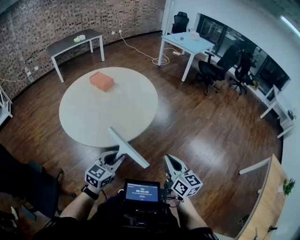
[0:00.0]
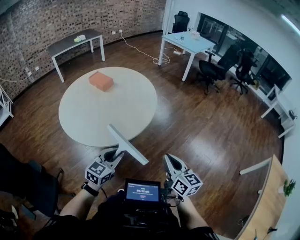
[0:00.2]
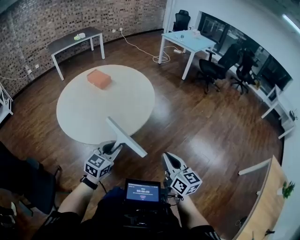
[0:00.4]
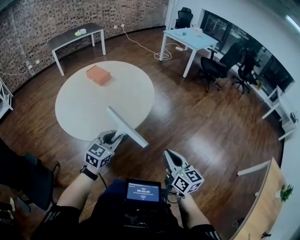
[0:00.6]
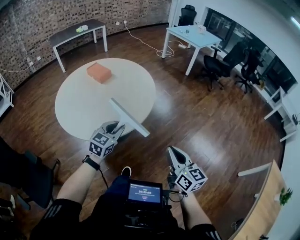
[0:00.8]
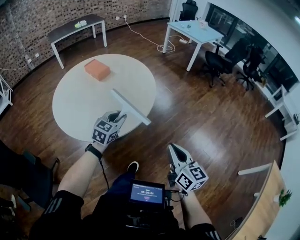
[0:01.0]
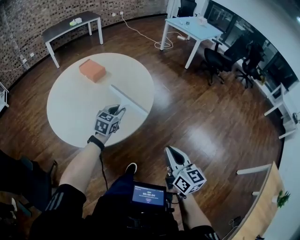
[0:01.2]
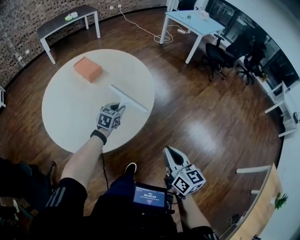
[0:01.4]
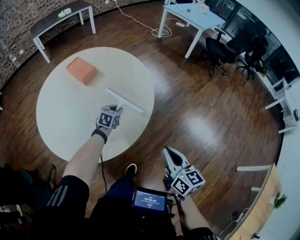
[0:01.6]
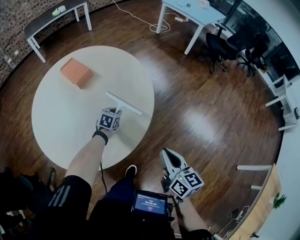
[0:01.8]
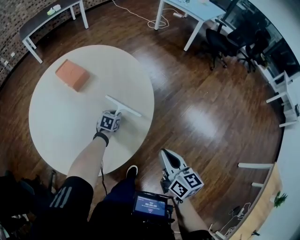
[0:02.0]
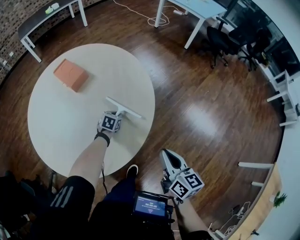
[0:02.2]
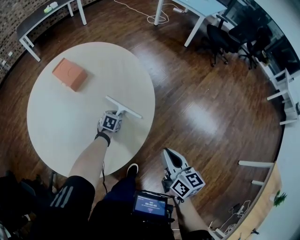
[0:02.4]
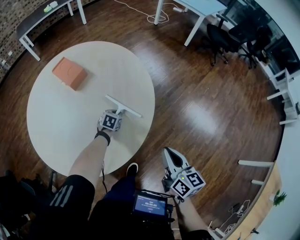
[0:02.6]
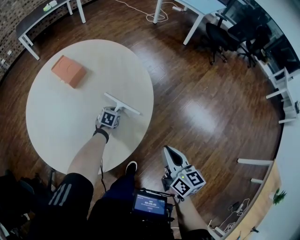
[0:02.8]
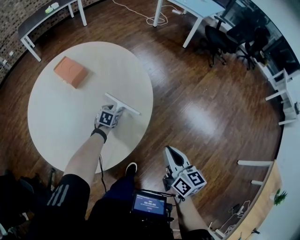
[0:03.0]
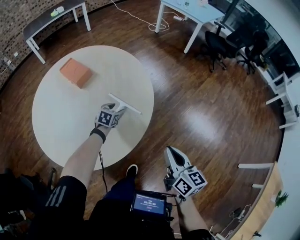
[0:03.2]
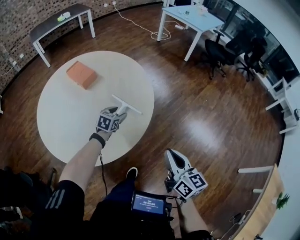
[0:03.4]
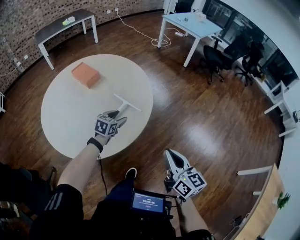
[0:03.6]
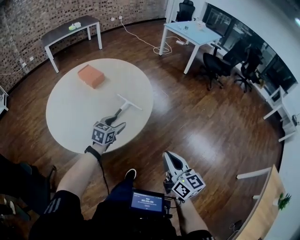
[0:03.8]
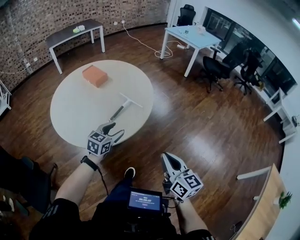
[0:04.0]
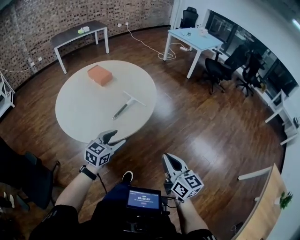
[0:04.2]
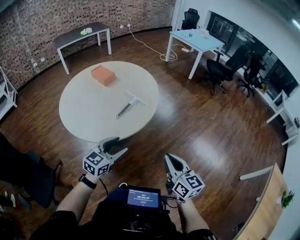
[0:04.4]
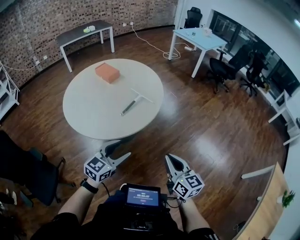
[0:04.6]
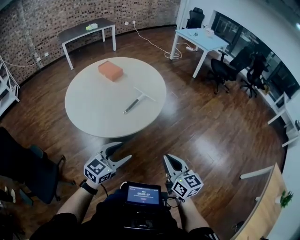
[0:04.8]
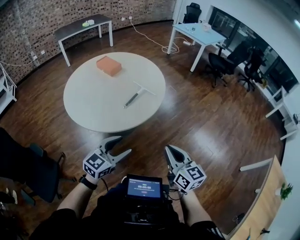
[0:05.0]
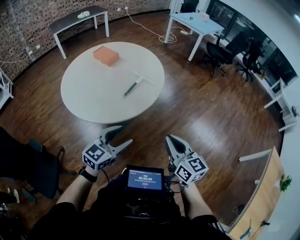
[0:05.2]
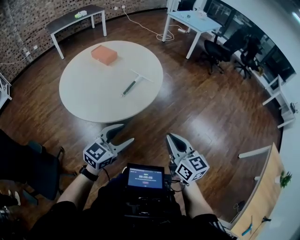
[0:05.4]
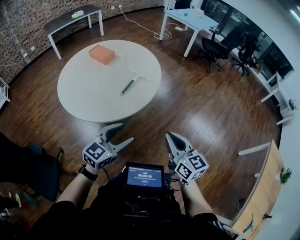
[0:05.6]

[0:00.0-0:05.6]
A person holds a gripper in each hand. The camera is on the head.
0:00.0 to 0:01.4: The left gripper goes roughly 40 cm forward; the right gripper heads forward, covering about 20 cm.
0:01.4 to 0:02.8: The left gripper travels downward and forward by roughly 25 cm, and changes its angle by roughly 20 degrees, while the right gripper moves forward and downward, some 20 cm.
0:02.8 to 0:04.2: The right gripper shifts about 30 cm backward. The left gripper is displaced backward and upward by about 50 cm, points its fingers roughly 30 degrees further upward, and opens its fingers.
0:04.2 to 0:05.6: The left gripper moves backward and upward, about 15 cm. Meanwhile the right gripper moves to the left and backward, about 10 cm.

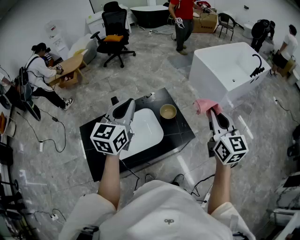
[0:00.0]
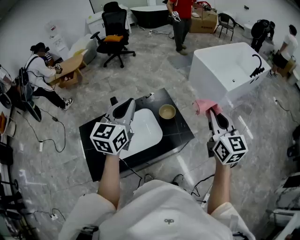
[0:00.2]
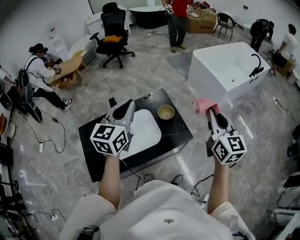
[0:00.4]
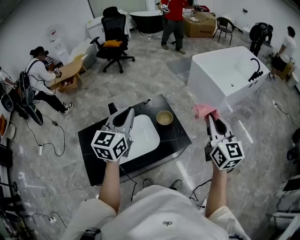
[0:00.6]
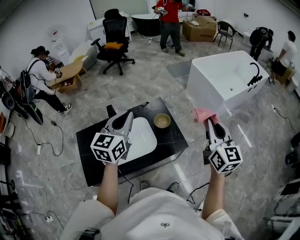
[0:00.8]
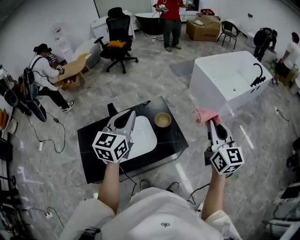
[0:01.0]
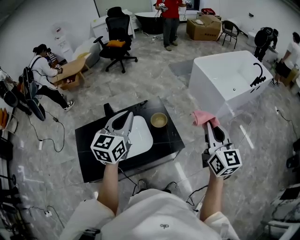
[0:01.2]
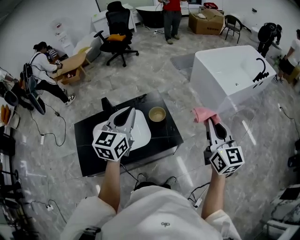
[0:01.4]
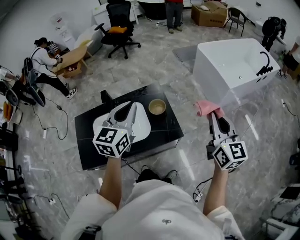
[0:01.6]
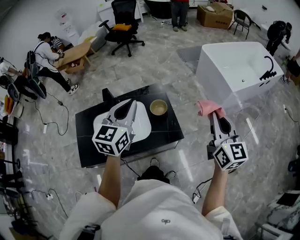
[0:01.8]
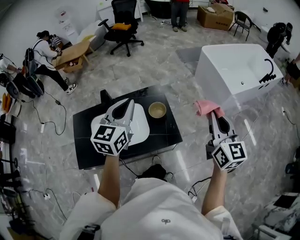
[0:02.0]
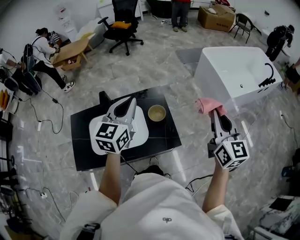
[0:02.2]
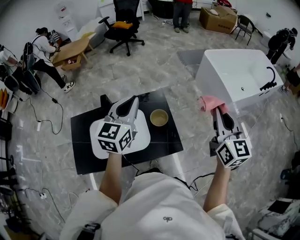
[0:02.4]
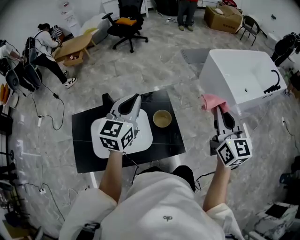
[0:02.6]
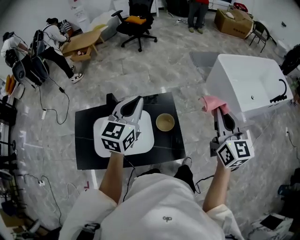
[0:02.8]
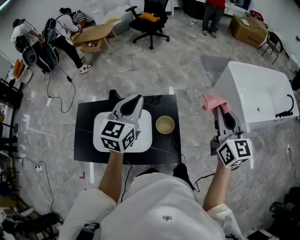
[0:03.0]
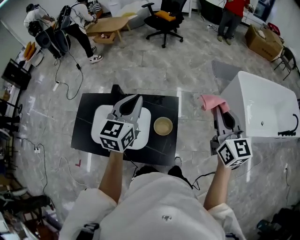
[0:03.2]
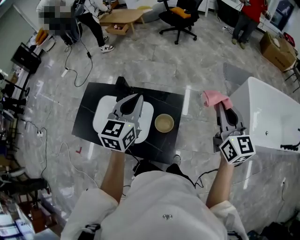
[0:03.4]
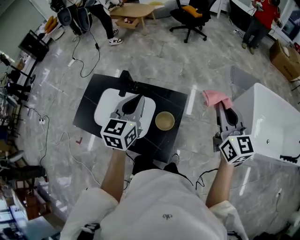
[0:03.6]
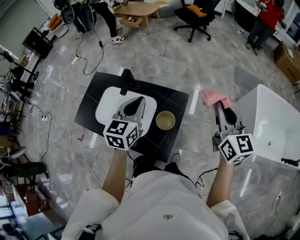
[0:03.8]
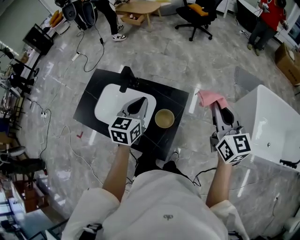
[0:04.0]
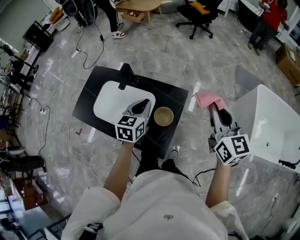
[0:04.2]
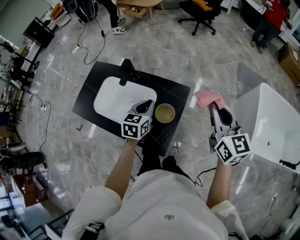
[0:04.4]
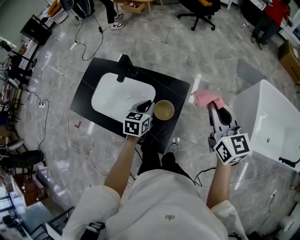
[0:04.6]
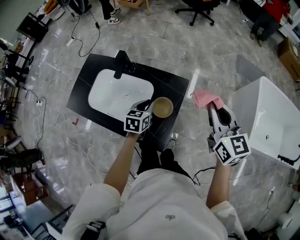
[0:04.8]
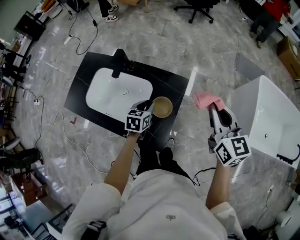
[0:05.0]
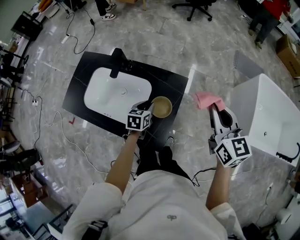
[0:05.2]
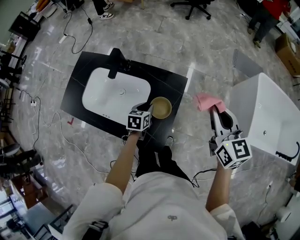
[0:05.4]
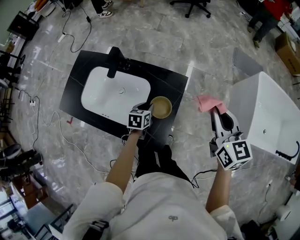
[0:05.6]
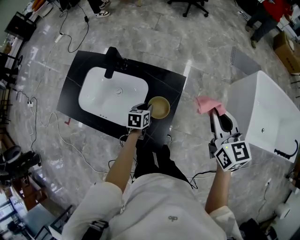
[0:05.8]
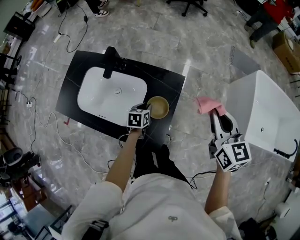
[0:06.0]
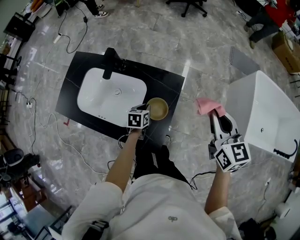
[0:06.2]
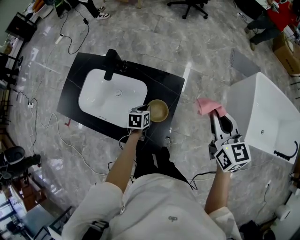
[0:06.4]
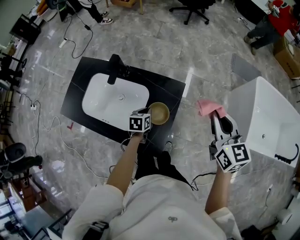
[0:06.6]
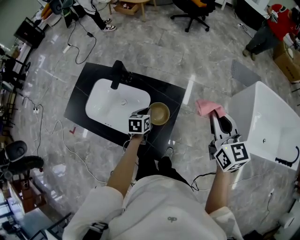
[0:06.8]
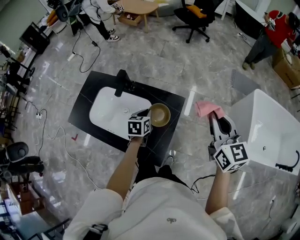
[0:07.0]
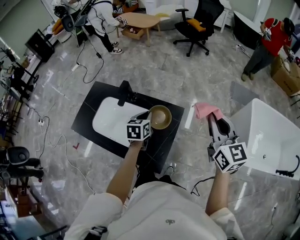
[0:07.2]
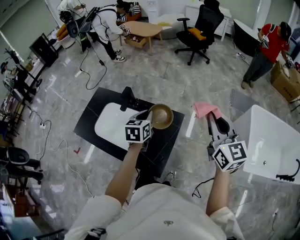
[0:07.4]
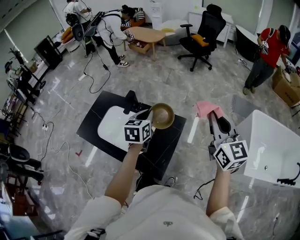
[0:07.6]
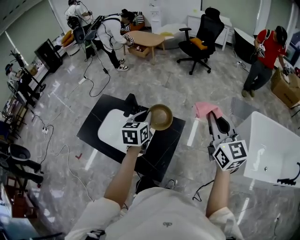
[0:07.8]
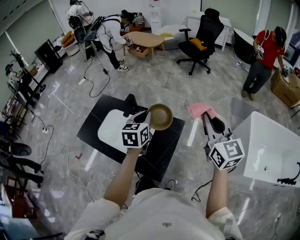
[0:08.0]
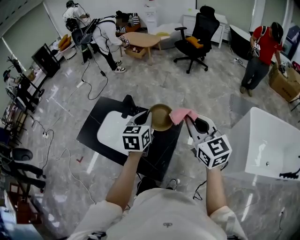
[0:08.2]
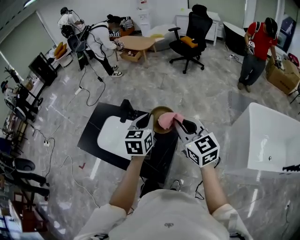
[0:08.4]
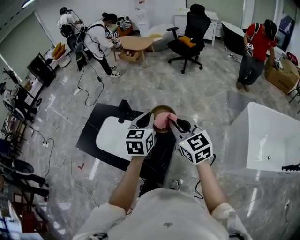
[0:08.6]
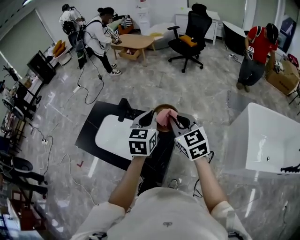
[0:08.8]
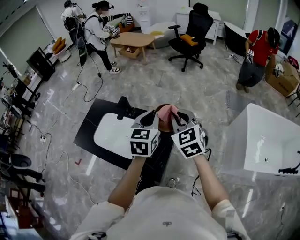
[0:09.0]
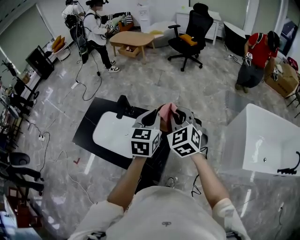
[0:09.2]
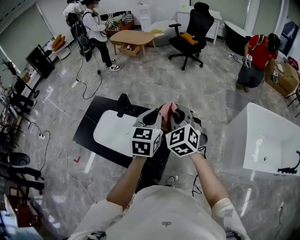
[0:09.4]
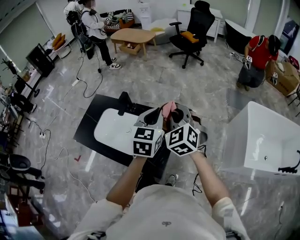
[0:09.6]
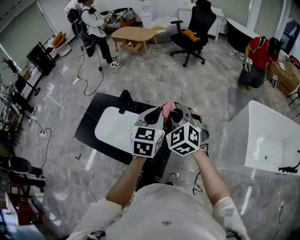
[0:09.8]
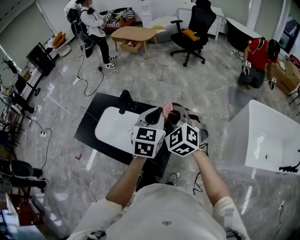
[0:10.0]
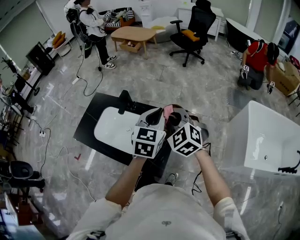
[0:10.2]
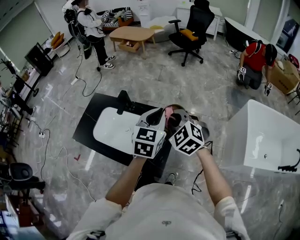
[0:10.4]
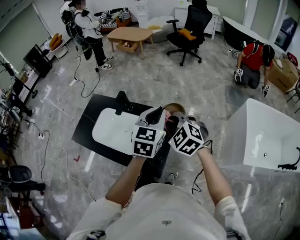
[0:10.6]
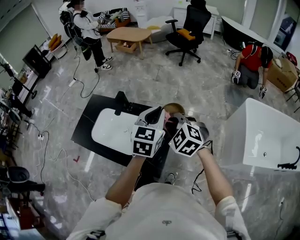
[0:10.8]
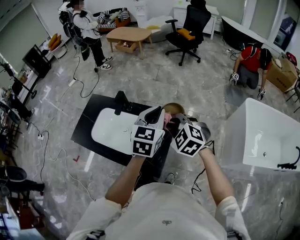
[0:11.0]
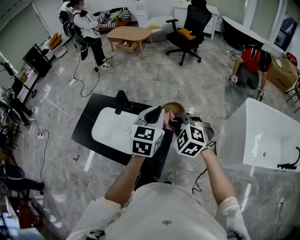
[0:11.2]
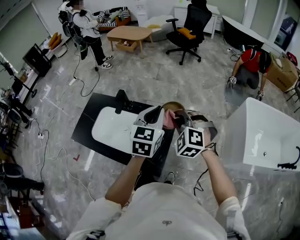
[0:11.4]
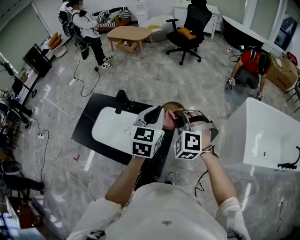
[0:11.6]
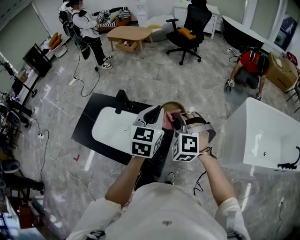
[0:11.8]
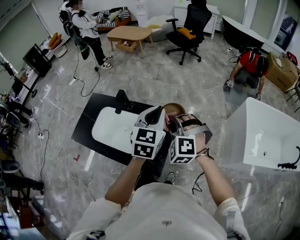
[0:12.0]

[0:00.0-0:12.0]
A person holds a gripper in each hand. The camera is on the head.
0:00.0 to 0:01.6: The two grippers go about 10 cm to the right.
0:01.6 to 0:03.0: The right gripper shifts approximately 20 cm forward. Meanwhile the left gripper travels forward by approximately 15 cm.
0:03.0 to 0:04.4: The left gripper is displaced downward by some 20 cm, and turns by some 30 degrees. The right gripper shifts by about 10 cm, and turns by some 30 degrees.
0:04.4 to 0:06.0: The right gripper moves downward, some 10 cm. The left gripper shifts roughly 20 cm downward, and rotates approximately 20 degrees.
0:06.0 to 0:07.6: The left gripper is displaced upward by some 30 cm, and rotates about 30 degrees, while the right gripper travels upward by some 15 cm, and turns by roughly 20 degrees.
0:07.6 to 0:09.0: The right gripper shifts some 10 cm to the left and downward, and changes its angle by some 30 degrees. The left gripper shifts approximately 10 cm to the right and upward.
0:09.0 to 0:10.4: The right gripper shifts by approximately 5 cm, and changes its angle by roughly 20 degrees.
0:10.4 to 0:12.0: The right gripper turns by approximately 30 degrees.

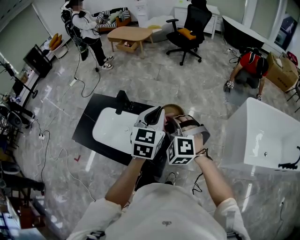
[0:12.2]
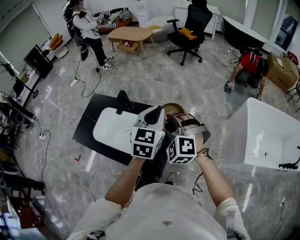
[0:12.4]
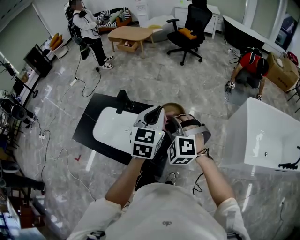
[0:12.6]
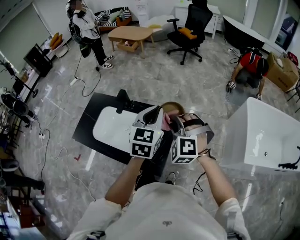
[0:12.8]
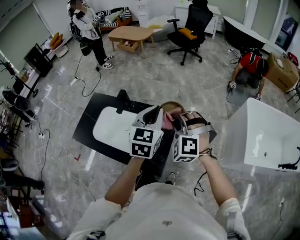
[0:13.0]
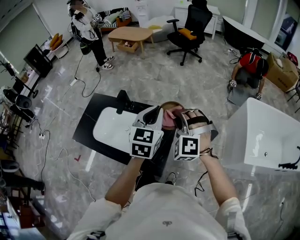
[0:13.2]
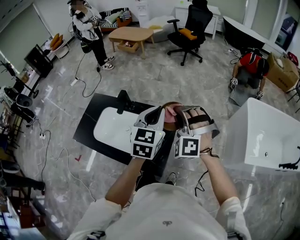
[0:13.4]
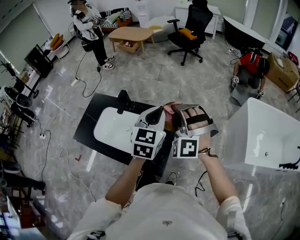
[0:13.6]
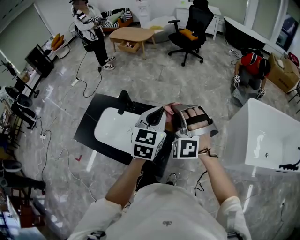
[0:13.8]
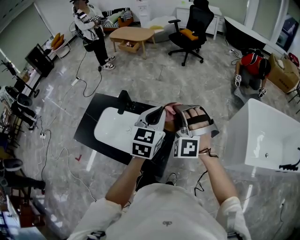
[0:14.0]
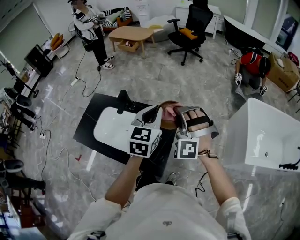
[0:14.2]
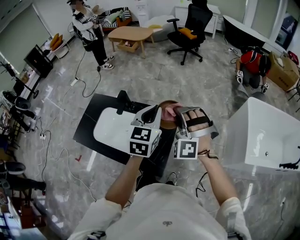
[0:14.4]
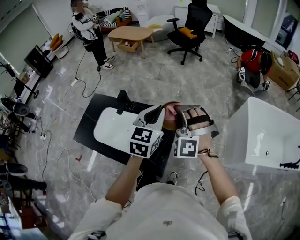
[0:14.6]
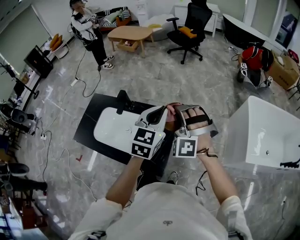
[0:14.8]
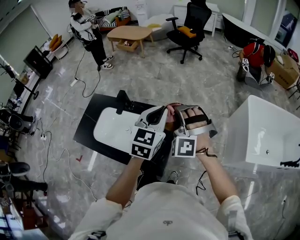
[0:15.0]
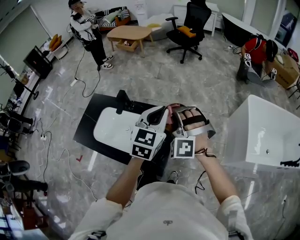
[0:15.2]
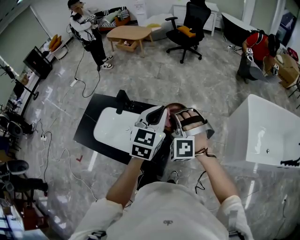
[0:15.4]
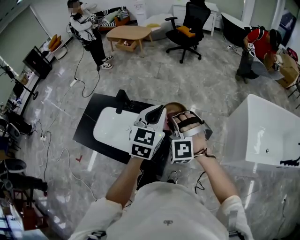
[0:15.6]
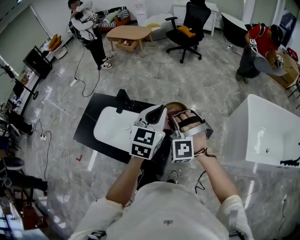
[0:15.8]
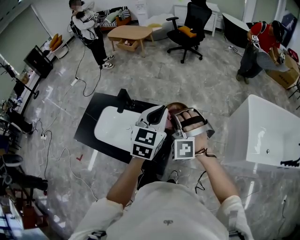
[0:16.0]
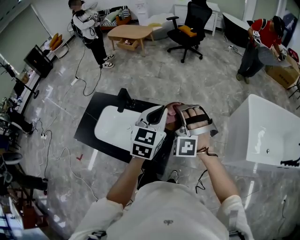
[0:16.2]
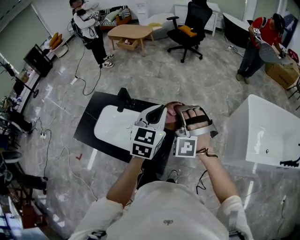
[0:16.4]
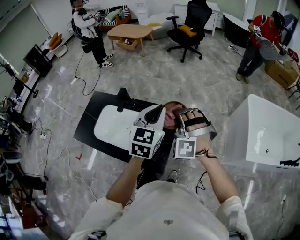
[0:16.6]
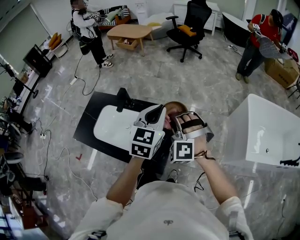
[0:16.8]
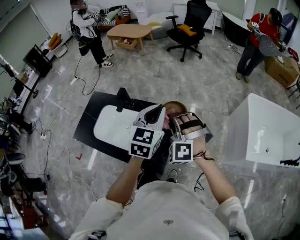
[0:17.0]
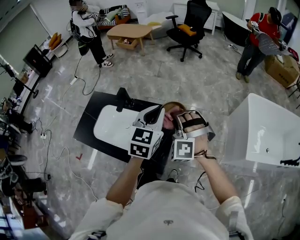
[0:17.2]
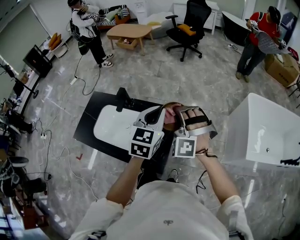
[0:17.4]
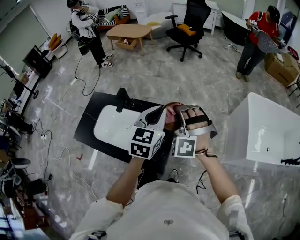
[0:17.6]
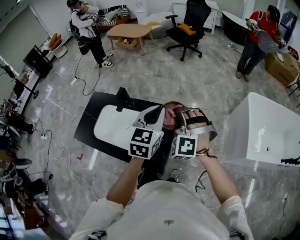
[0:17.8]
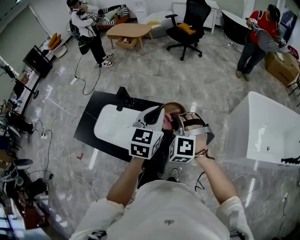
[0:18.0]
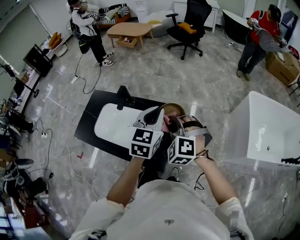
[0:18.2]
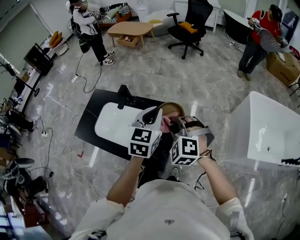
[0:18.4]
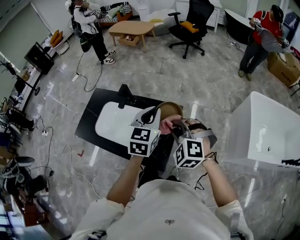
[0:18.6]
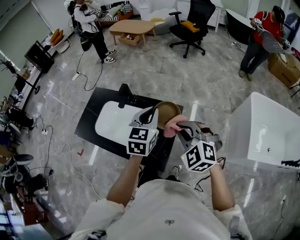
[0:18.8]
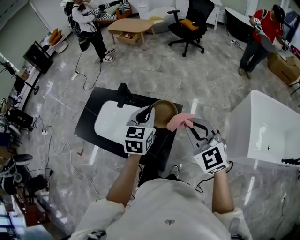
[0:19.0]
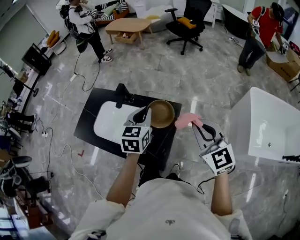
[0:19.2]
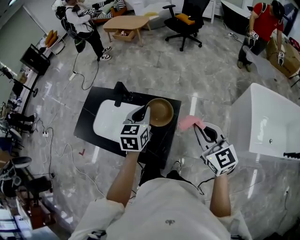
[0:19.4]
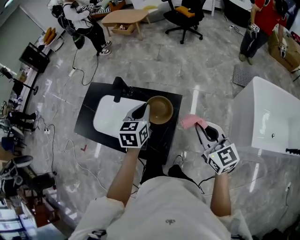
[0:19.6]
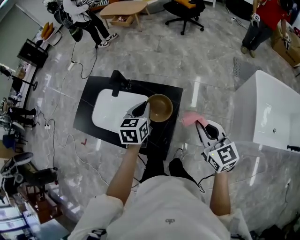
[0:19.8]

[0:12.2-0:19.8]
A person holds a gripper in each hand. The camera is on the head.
0:12.2 to 0:13.8: The right gripper heads upward, covering approximately 5 cm, and rotates approximately 30 degrees.
0:13.8 to 0:15.2: The grippers move only a little.
0:15.2 to 0:16.8: The grippers stay close to where they were, moving slightly.
0:16.8 to 0:18.2: The grippers move only a little.
0:18.2 to 0:19.8: The left gripper shifts about 15 cm downward and to the left, and turns by about 20 degrees. Meanwhile the right gripper moves to the right, roughly 15 cm, and rotates around the line of its fingers by approximately 60 degrees, clockwise from behind.
